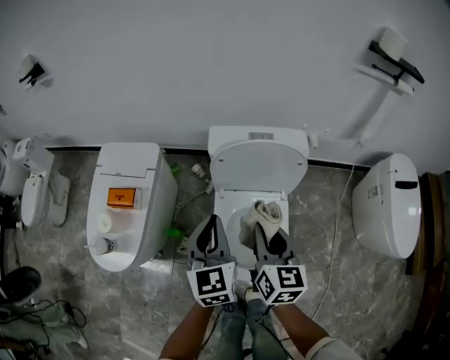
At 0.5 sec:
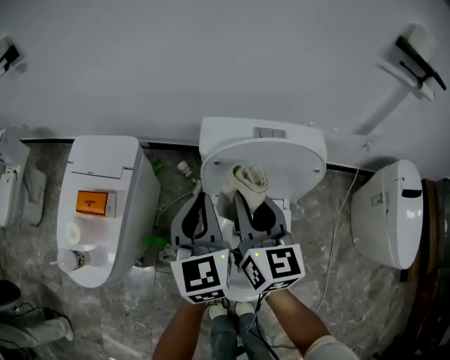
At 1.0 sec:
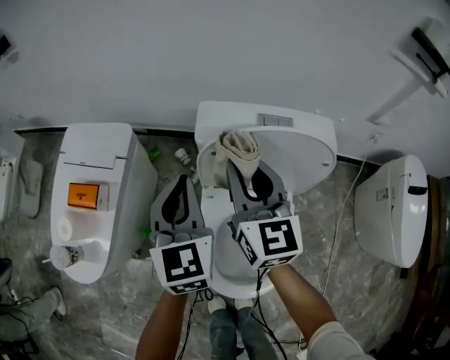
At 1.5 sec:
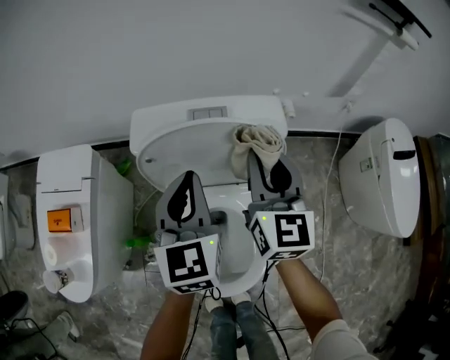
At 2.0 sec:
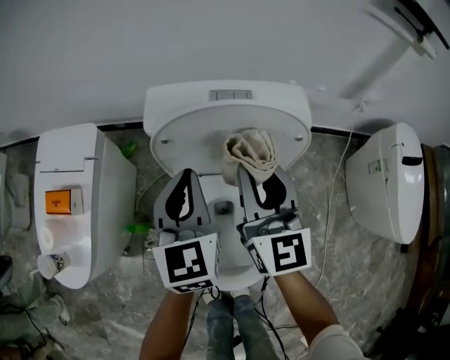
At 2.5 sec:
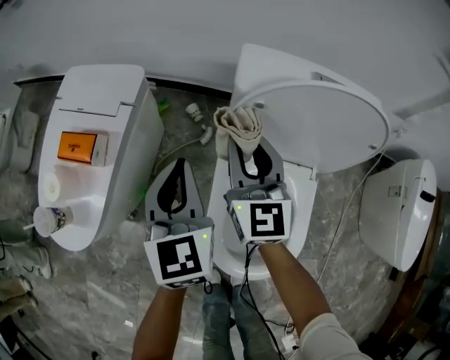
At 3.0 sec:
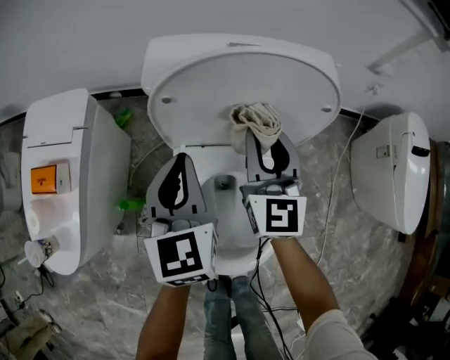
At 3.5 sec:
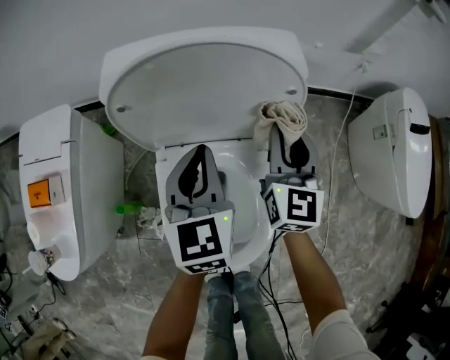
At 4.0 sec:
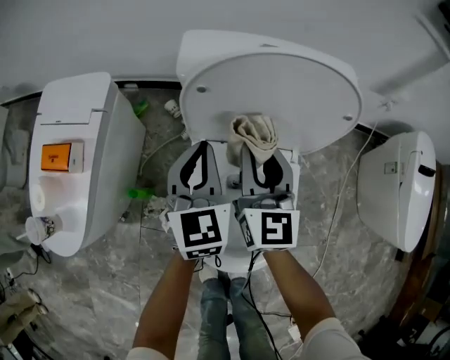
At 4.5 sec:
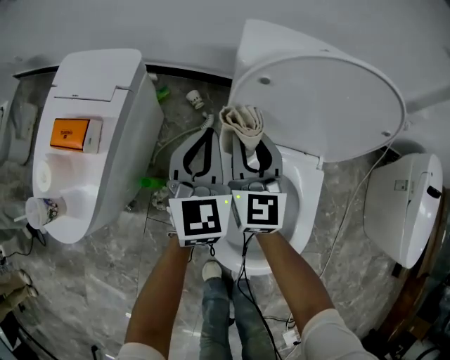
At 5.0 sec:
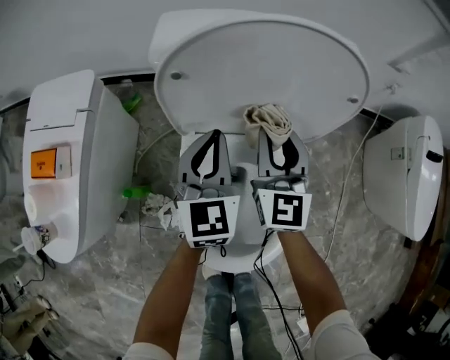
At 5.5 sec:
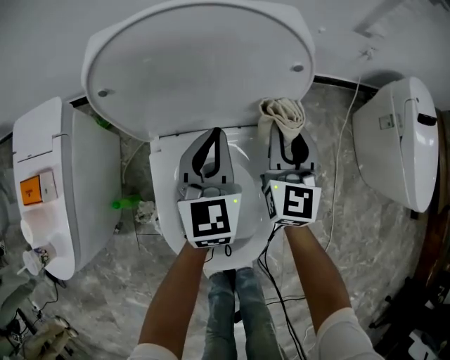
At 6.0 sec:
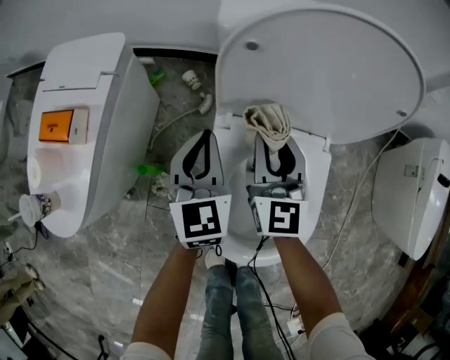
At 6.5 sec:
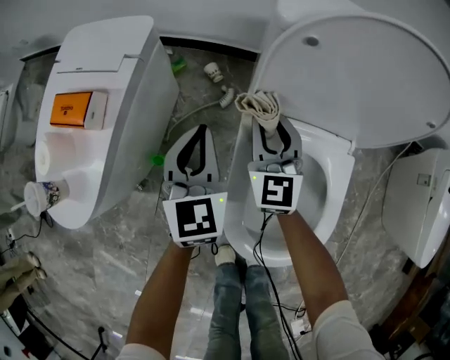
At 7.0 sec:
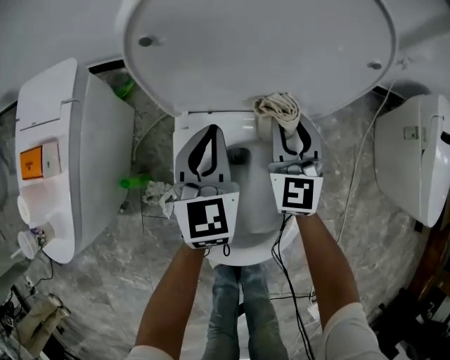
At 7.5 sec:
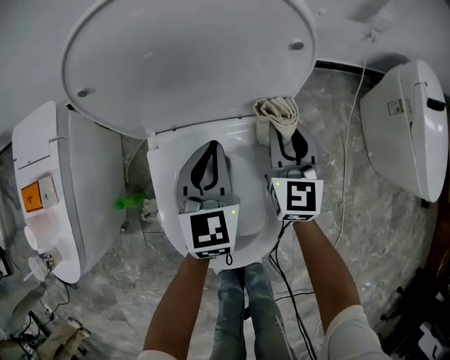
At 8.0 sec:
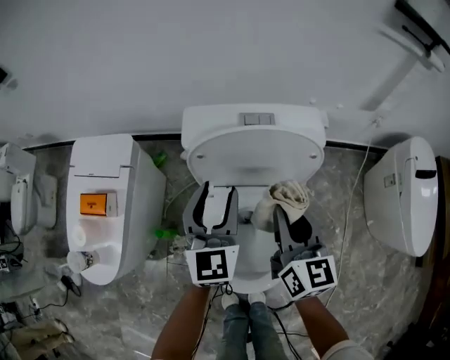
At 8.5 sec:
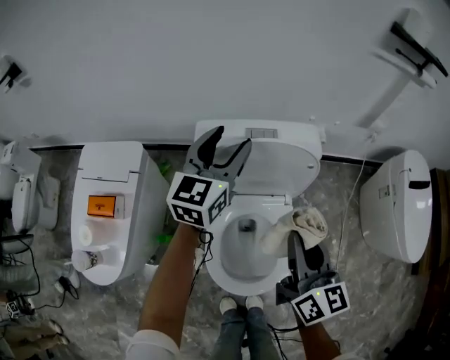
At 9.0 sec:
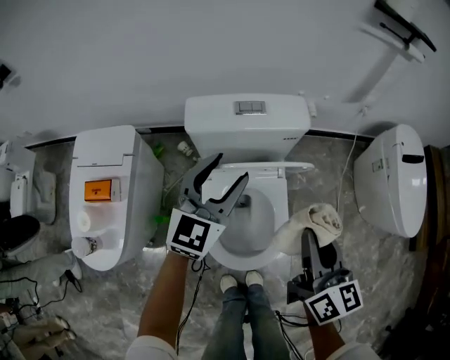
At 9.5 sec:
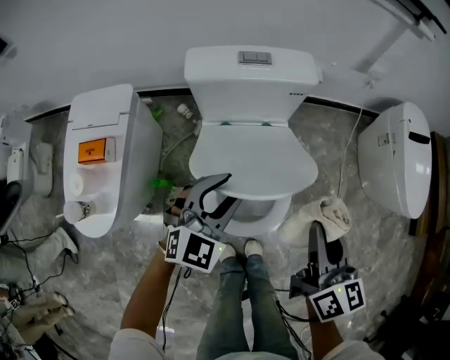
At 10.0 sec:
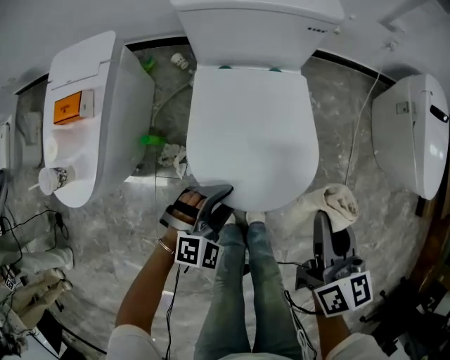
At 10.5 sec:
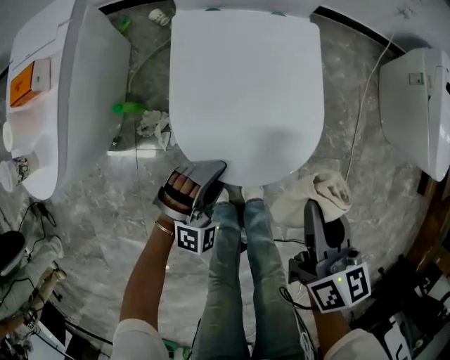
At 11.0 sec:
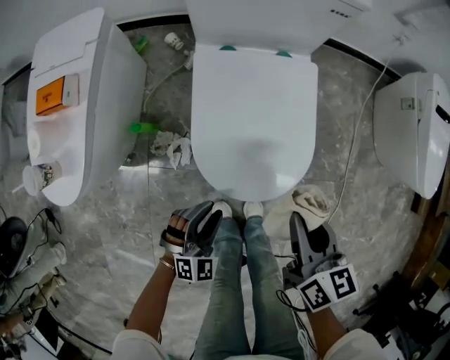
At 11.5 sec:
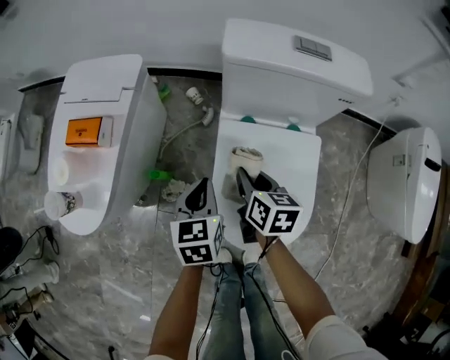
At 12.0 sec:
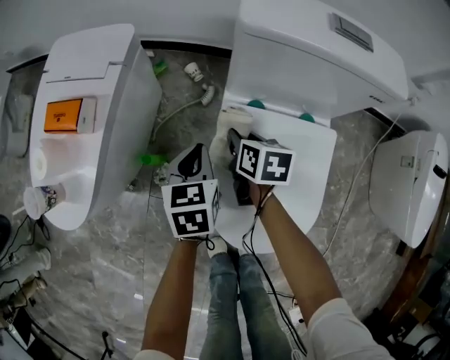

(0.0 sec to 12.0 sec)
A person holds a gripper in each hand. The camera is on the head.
0.0 sec - 2.0 sec: The left gripper moves forward, downward and to the right, about 20 cm. Meanwhile the right gripper travels forward and downward by roughly 15 cm, and changes its angle by approximately 20 degrees.
2.0 sec - 4.0 sec: The left gripper goes left and right, some 25 cm each way, reversing 2 times. The right gripper goes left and right, some 30 cm each way, reversing 2 times.
4.0 sec - 6.0 sec: The right gripper goes left and right, some 30 cm each way, reversing 2 times; the left gripper swings left and right, some 20 cm each way, with 2 reversals.
6.0 sec - 8.0 sec: The left gripper swings left and right, roughly 25 cm each way, with 2 reversals, and opens up; the right gripper goes left and right, about 30 cm each way, reversing 2 times, and rotates roughly 20 degrees.
8.0 sec - 10.0 sec: The left gripper shifts about 35 cm backward and downward, and angles its fingers downward, by some 30 degrees, while the right gripper is displaced backward and to the right by approximately 25 cm.
10.0 sec - 12.0 sec: The right gripper changes place by some 40 cm, and changes its angle by roughly 30 degrees, while the left gripper goes up and down, approximately 15 cm each way, reversing 2 times, rotates around the line of its fingers by about 70 degrees, counterclockwise from behind, and closes its fingers.

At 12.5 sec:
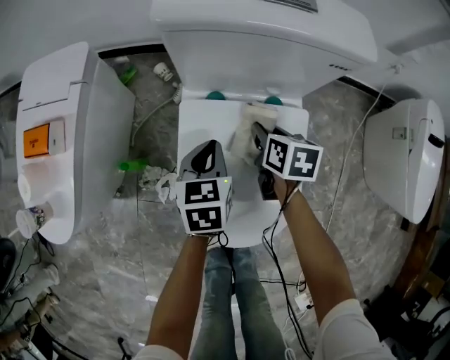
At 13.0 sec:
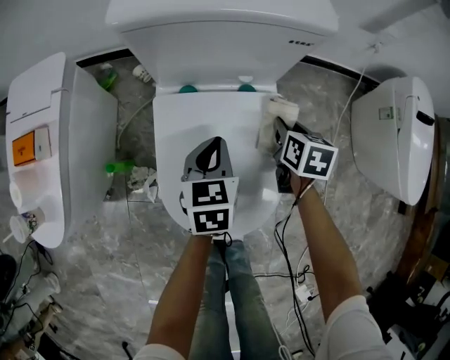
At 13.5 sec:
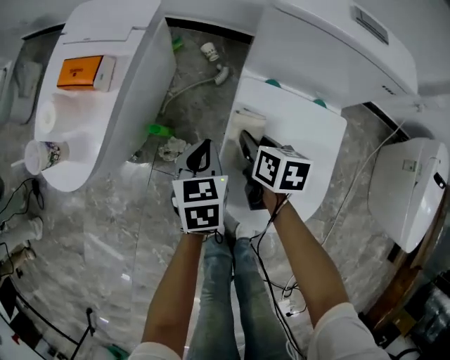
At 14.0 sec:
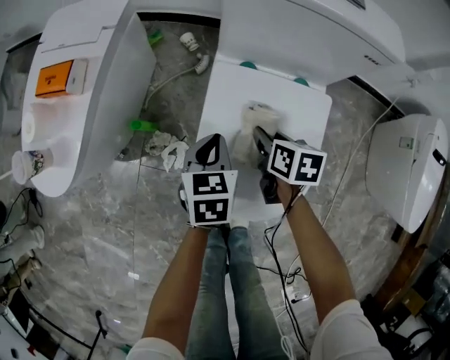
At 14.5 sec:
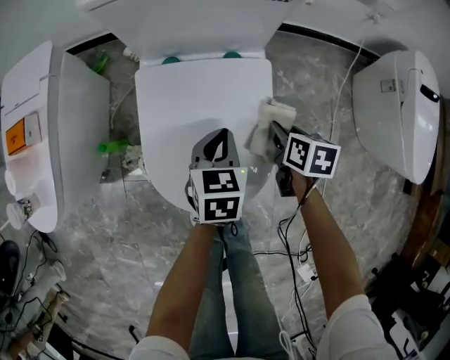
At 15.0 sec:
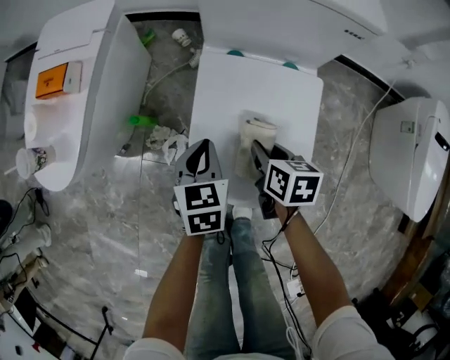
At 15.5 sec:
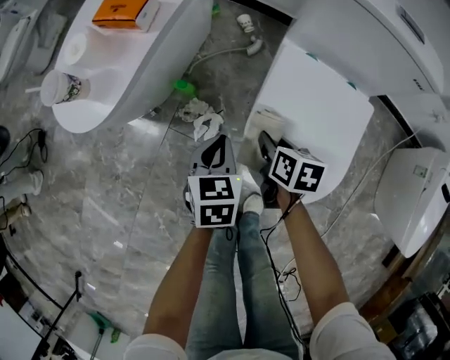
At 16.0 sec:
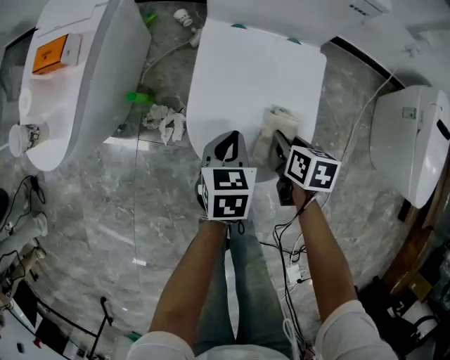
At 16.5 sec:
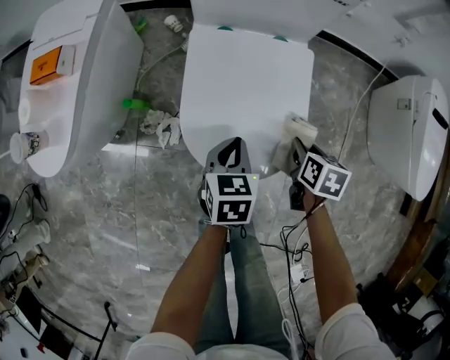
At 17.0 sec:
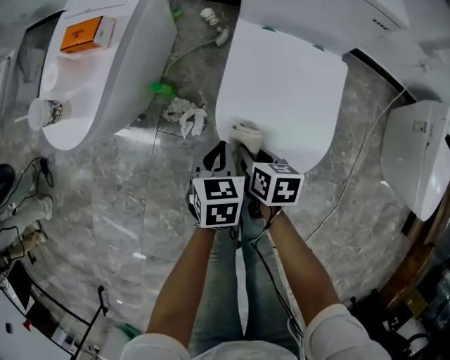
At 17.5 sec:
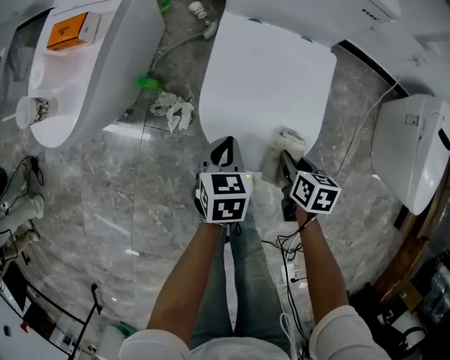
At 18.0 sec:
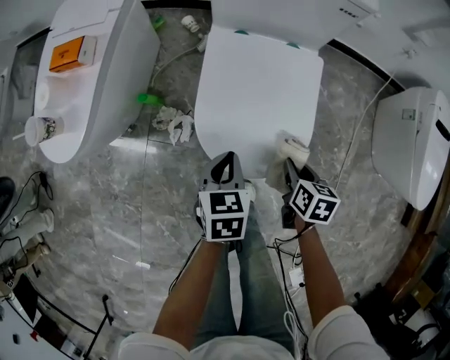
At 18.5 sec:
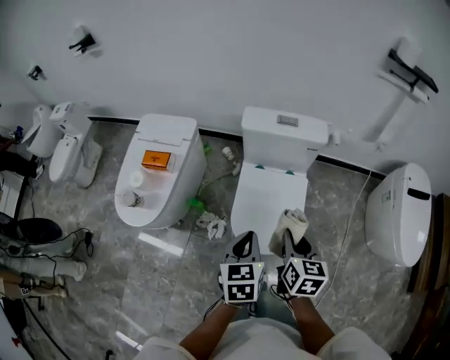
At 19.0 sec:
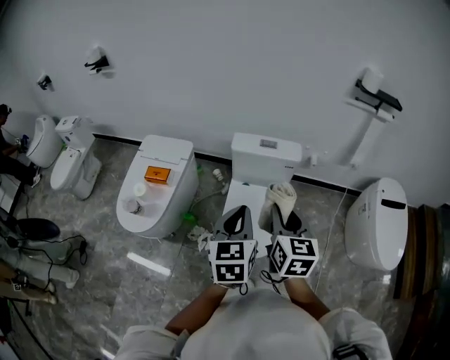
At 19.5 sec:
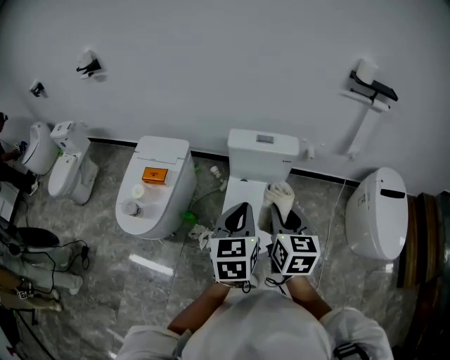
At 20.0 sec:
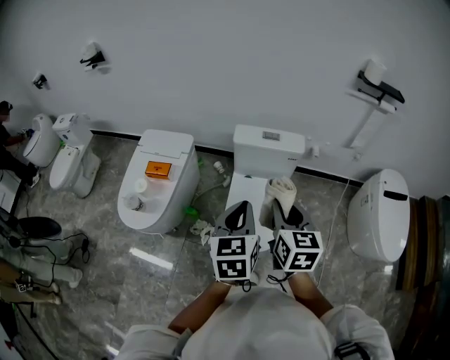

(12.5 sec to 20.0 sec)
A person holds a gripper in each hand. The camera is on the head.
12.5 sec - 14.5 sec: The right gripper moves approximately 20 cm. The left gripper moves roughly 15 cm.
16.5 sec - 18.0 sec: The right gripper moves some 25 cm to the left and comes back. The left gripper travels to the left by approximately 5 cm.
18.0 sec - 20.0 sec: Both grippers move upward, about 50 cm. The right gripper points its fingers approximately 30 degrees further upward, while the left gripper swivels approximately 30 degrees.

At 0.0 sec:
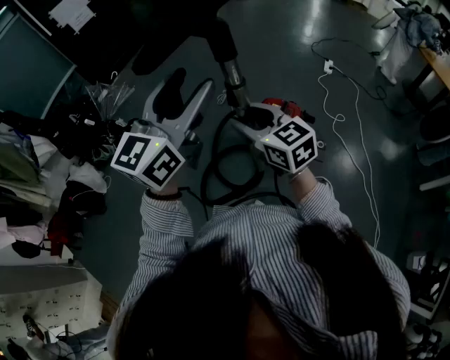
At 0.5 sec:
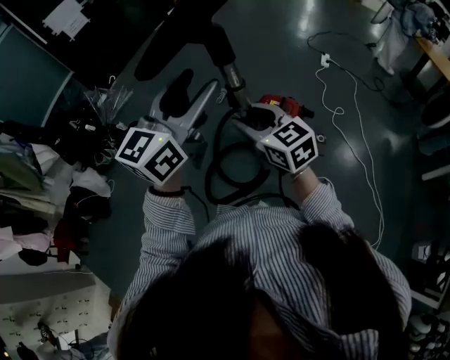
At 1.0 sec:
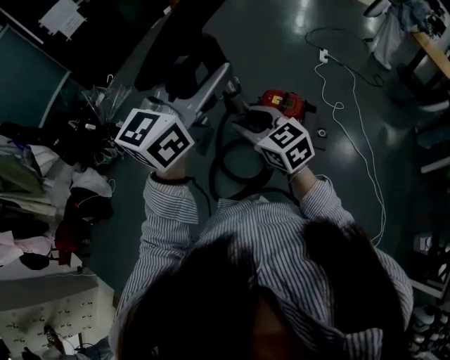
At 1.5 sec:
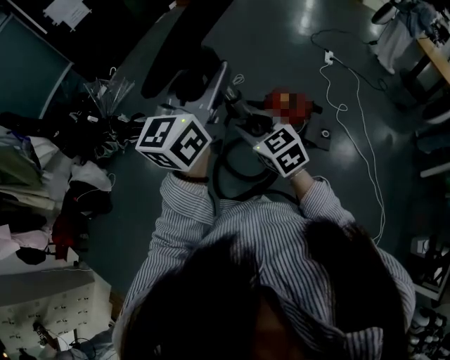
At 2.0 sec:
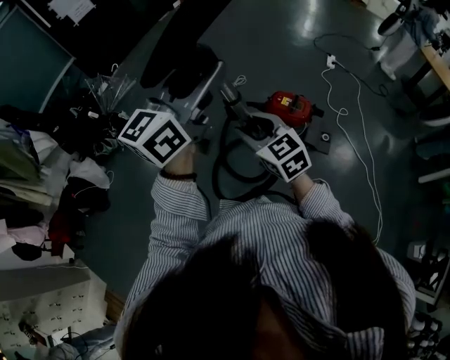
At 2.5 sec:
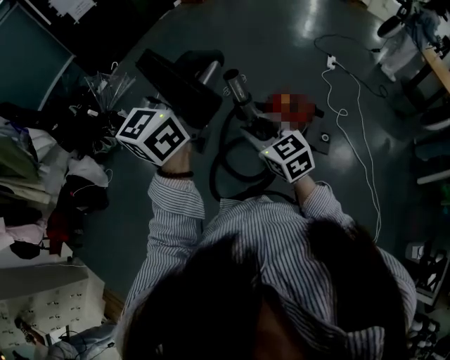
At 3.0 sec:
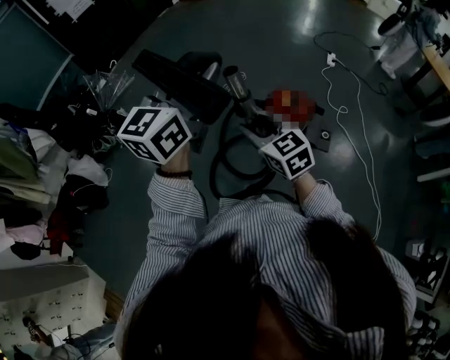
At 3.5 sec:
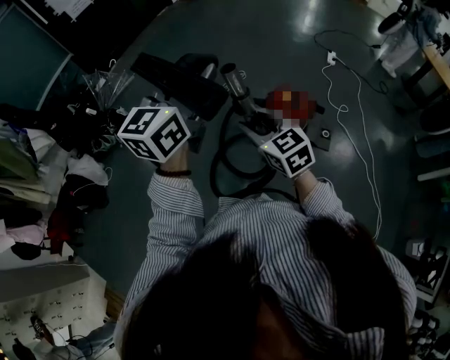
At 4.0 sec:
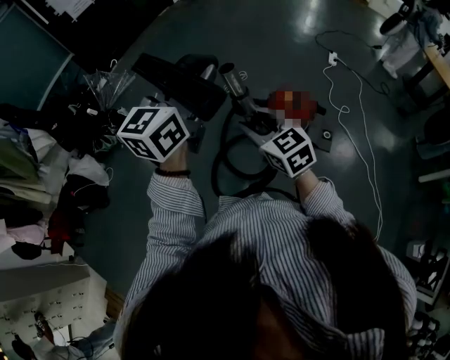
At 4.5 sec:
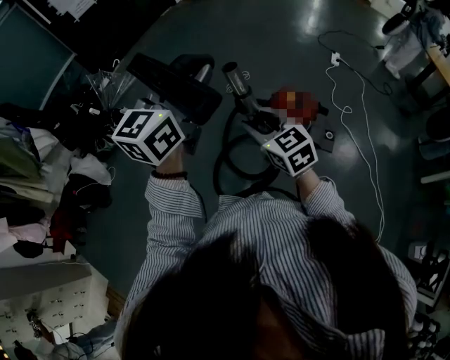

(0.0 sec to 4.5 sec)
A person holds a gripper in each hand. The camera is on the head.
0.0 sec - 2.0 sec: The two grippers go some 10 cm to the left.
2.0 sec - 4.5 sec: The left gripper moves approximately 5 cm.

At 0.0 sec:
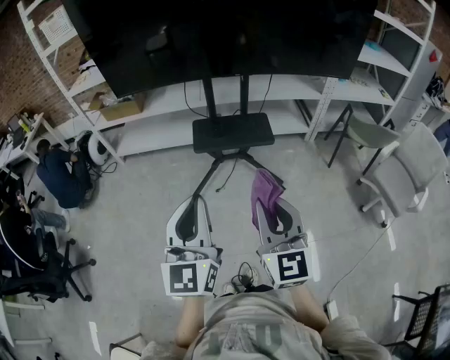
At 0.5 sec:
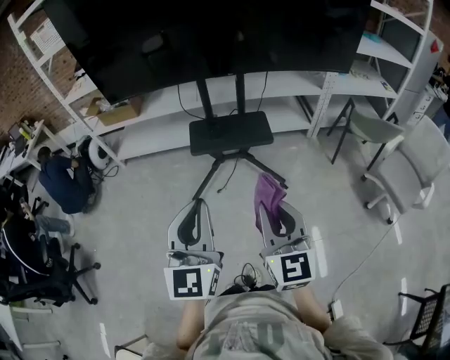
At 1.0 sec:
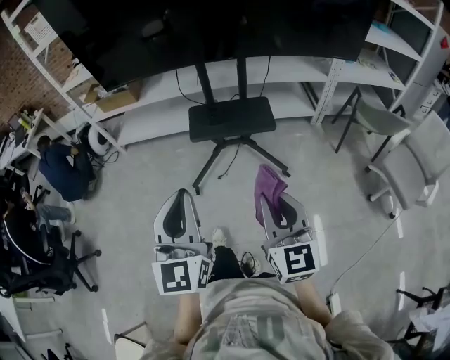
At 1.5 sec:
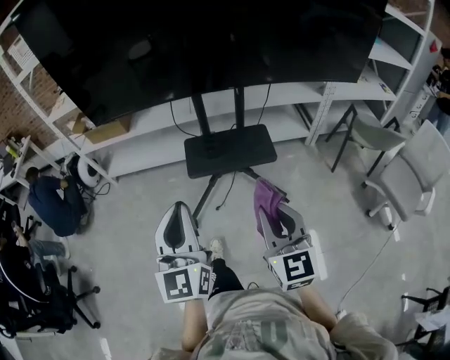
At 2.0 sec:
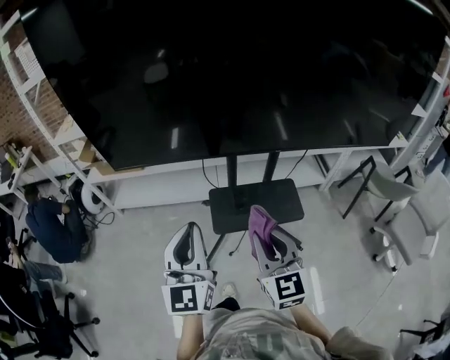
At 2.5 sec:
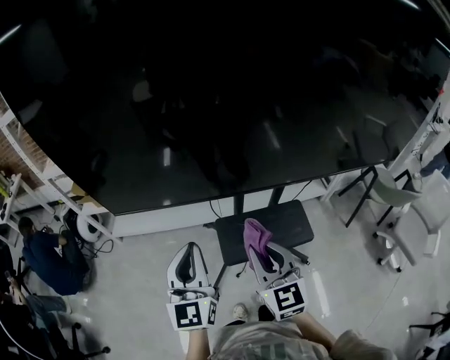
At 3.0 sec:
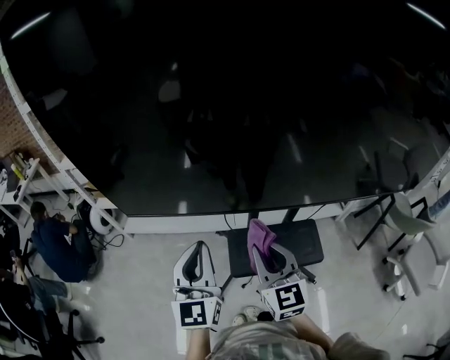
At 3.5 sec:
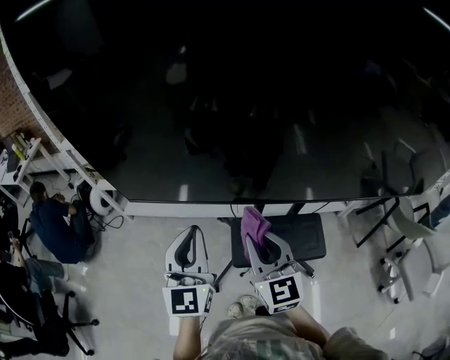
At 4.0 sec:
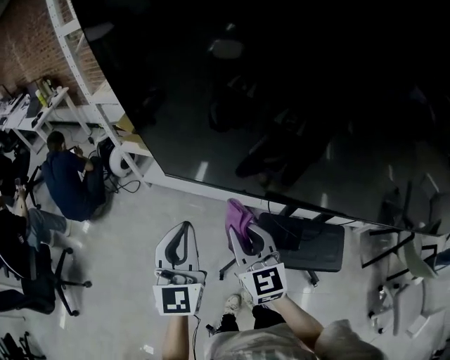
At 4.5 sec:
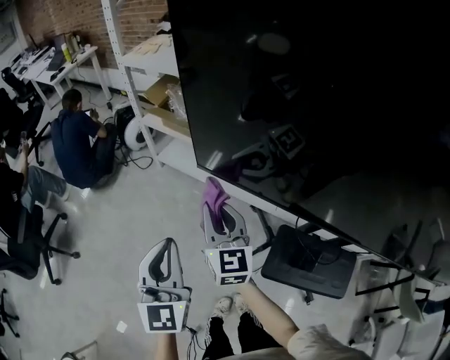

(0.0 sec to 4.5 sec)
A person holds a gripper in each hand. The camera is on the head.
0.0 sec - 2.0 sec: Both grippers travel together forward, some 35 cm.
2.0 sec - 4.5 sec: The right gripper moves roughly 50 cm, and turns by approximately 30 degrees, while the left gripper ends up approximately 35 cm from where it was, and rotates roughly 30 degrees.
